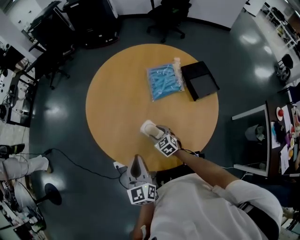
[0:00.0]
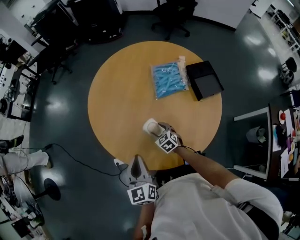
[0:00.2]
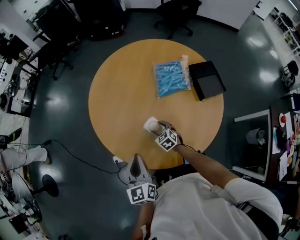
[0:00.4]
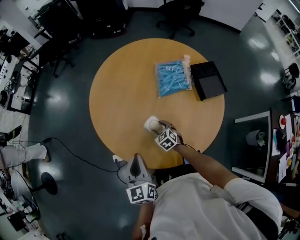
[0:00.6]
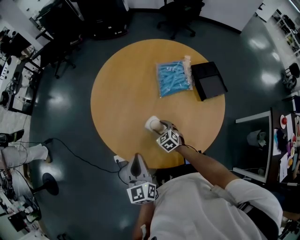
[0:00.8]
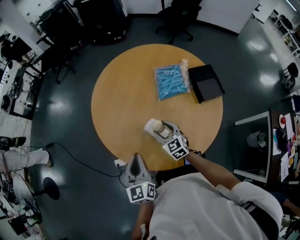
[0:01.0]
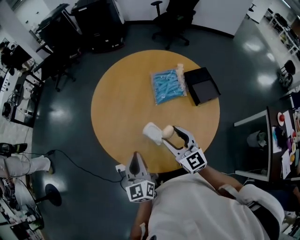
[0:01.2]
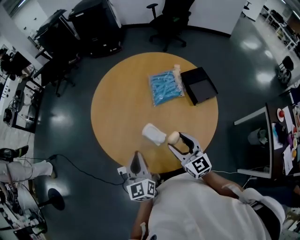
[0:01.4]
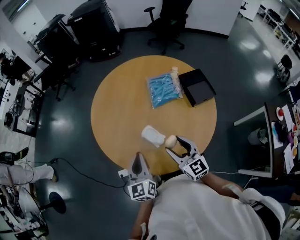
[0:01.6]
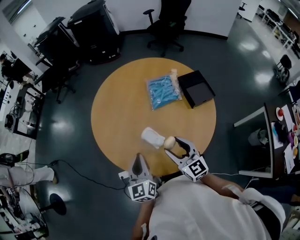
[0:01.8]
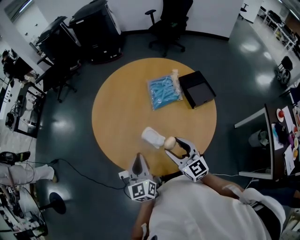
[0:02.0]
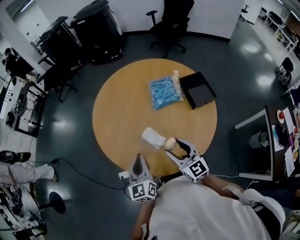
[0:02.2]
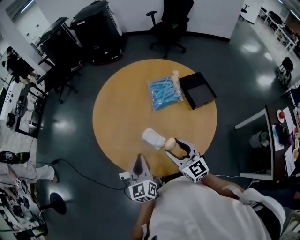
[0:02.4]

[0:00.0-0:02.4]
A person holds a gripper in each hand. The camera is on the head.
0:00.0 to 0:01.2: The right gripper heads upward, covering approximately 25 cm, and angles its fingers upward, by roughly 30 degrees.
0:01.2 to 0:02.4: The right gripper travels backward by about 5 cm.

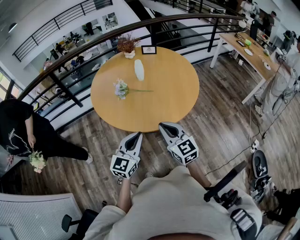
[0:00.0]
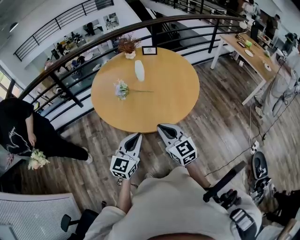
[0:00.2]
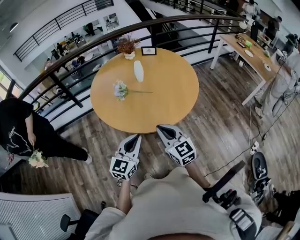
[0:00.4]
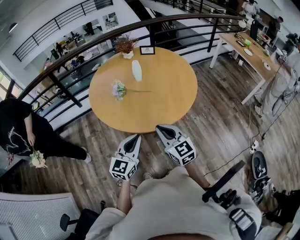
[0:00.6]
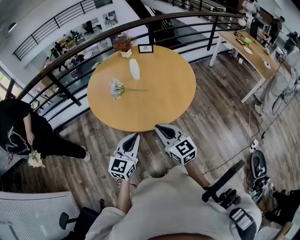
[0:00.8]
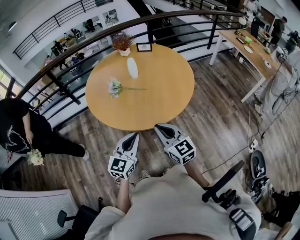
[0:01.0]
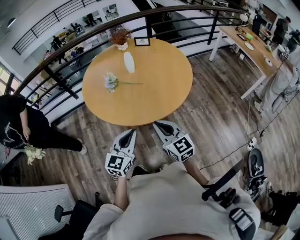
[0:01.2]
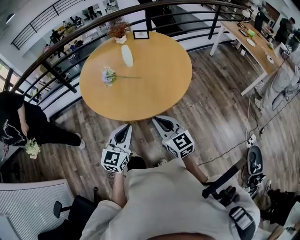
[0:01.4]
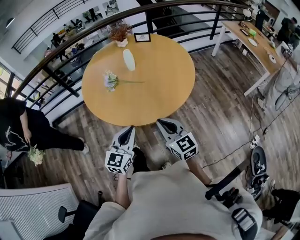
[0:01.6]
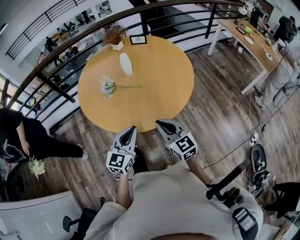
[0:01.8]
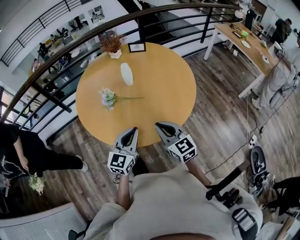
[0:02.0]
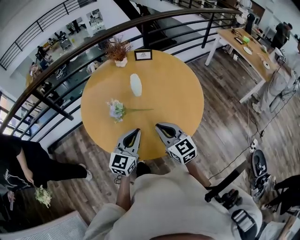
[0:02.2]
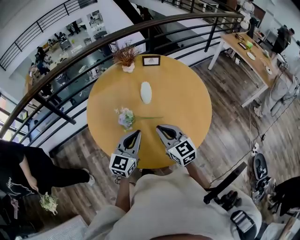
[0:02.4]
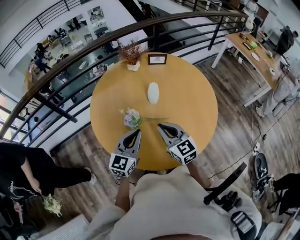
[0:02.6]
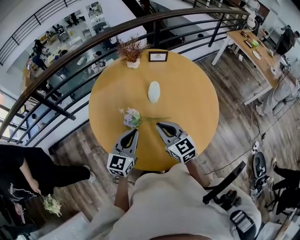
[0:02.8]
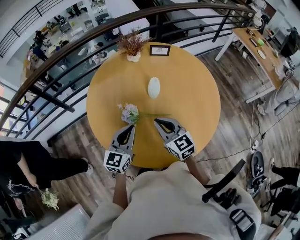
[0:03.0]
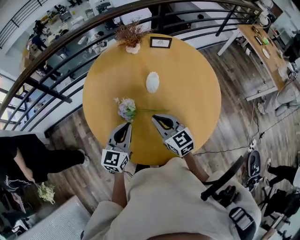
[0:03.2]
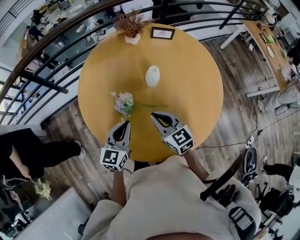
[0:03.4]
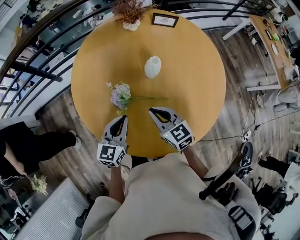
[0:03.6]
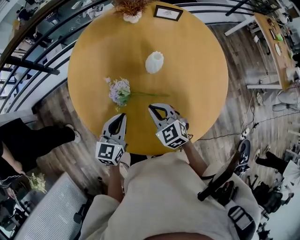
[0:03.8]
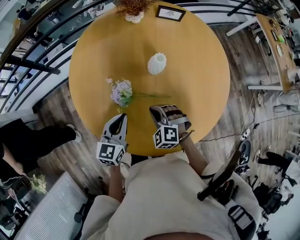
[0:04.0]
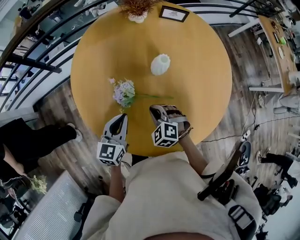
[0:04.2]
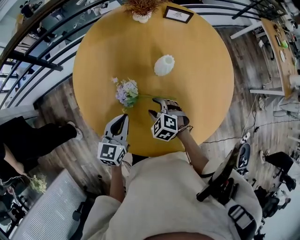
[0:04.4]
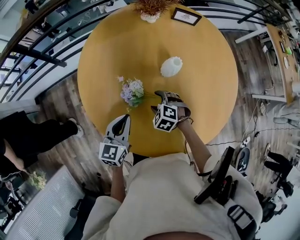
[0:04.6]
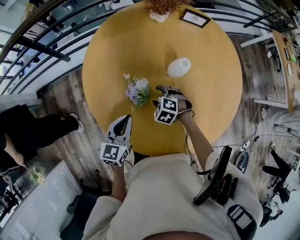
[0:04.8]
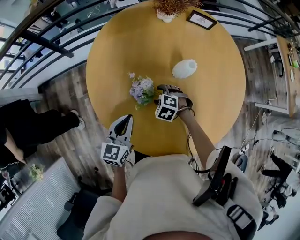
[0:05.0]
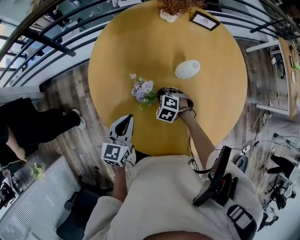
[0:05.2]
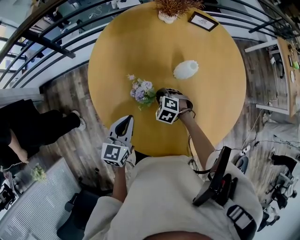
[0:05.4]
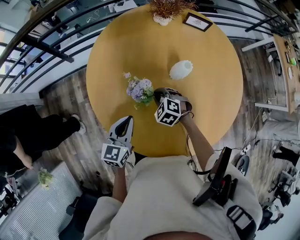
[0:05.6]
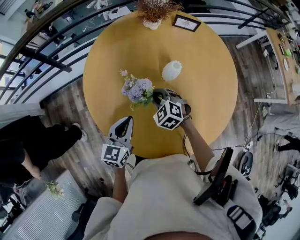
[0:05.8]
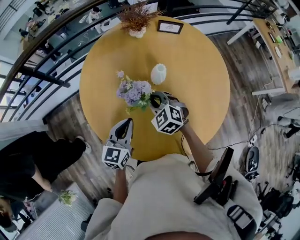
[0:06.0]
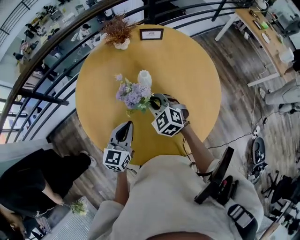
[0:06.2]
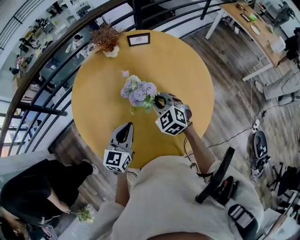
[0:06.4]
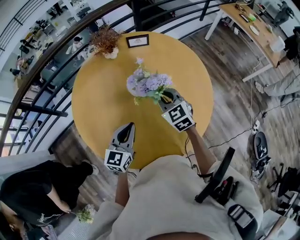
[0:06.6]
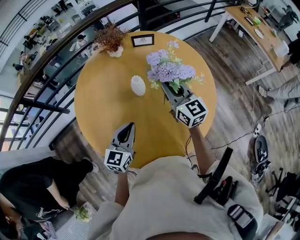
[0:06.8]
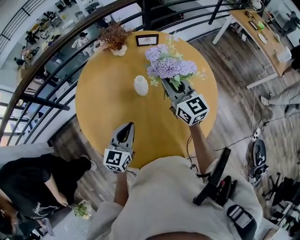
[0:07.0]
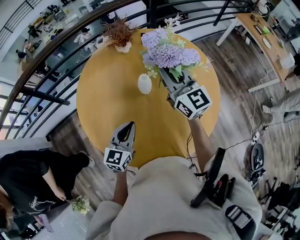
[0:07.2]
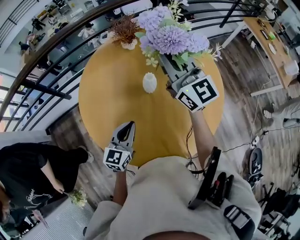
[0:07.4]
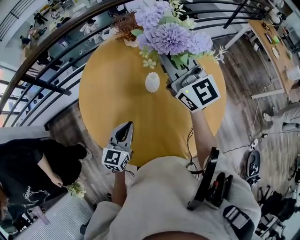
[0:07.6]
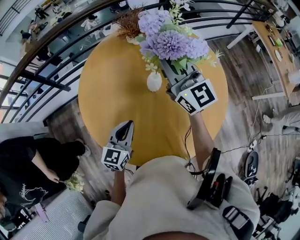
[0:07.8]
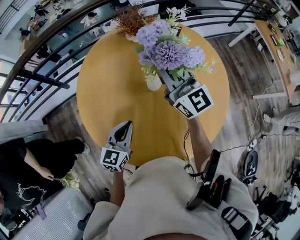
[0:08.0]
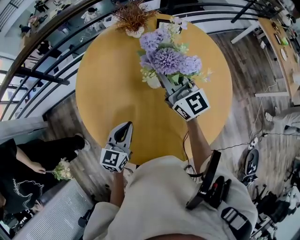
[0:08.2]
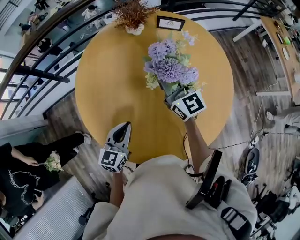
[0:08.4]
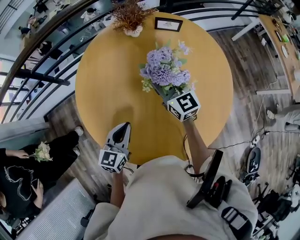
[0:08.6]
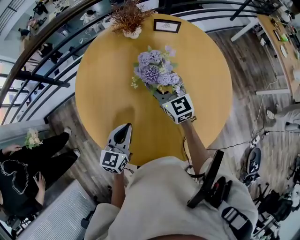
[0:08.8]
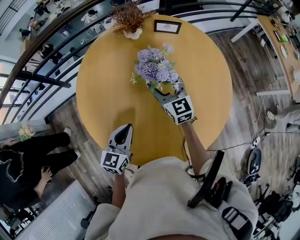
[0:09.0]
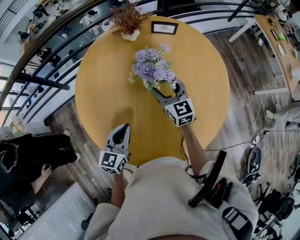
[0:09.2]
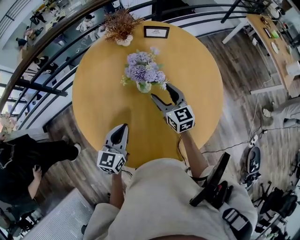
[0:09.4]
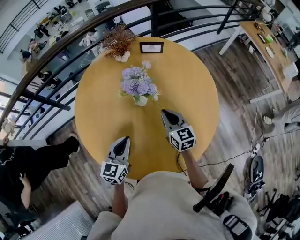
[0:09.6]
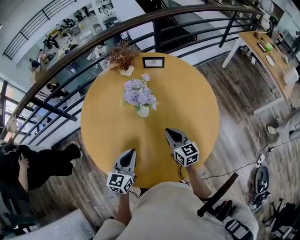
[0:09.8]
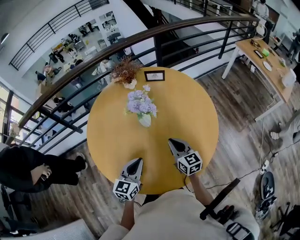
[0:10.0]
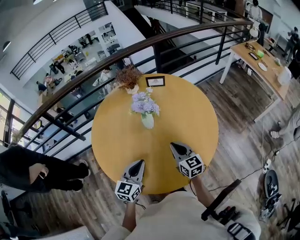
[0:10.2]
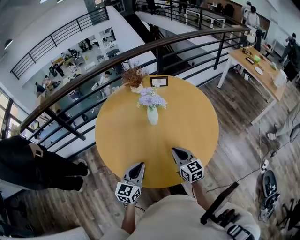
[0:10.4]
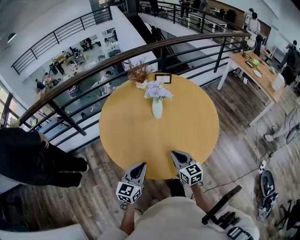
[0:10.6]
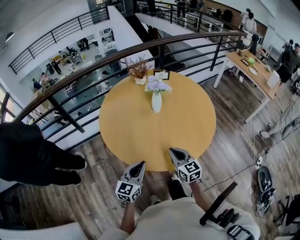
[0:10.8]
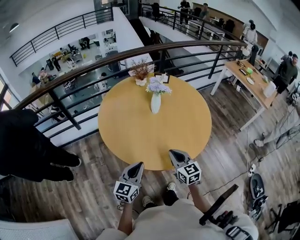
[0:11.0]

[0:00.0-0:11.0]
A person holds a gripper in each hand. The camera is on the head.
0:00.0 to 0:01.6: The right gripper moves to the right, some 5 cm.
0:01.6 to 0:03.2: Both grippers travel together forward and to the left, some 30 cm.
0:03.2 to 0:04.8: The right gripper shifts some 20 cm downward, tilts its fingers approximately 50 degrees downward, and opens; the left gripper heads downward and to the left, covering some 10 cm.
0:04.8 to 0:06.2: The right gripper shifts approximately 15 cm upward, tips its fingers upward by approximately 30 degrees, and closes its fingers. The left gripper heads to the right and upward, covering approximately 10 cm.
0:06.2 to 0:07.8: The right gripper heads upward and forward, covering about 25 cm, and tilts its fingers about 50 degrees upward.
0:07.8 to 0:09.4: The right gripper travels downward by about 25 cm, swivels some 30 degrees, and opens its fingers.
0:09.4 to 0:11.0: Both grippers move backward, some 20 cm. The right gripper closes up.

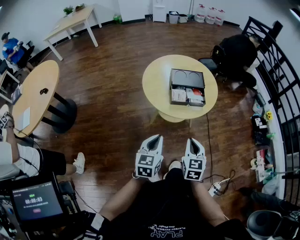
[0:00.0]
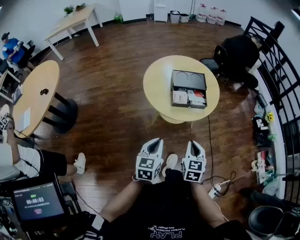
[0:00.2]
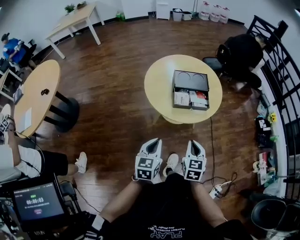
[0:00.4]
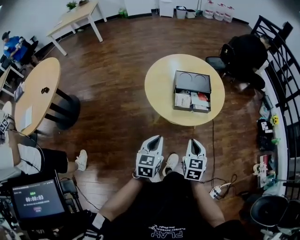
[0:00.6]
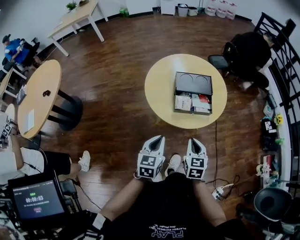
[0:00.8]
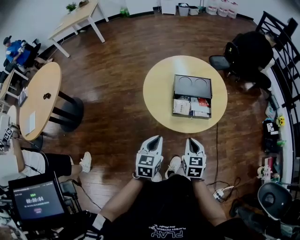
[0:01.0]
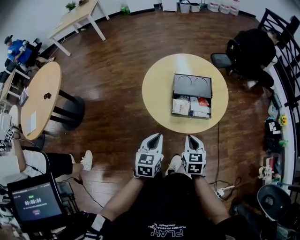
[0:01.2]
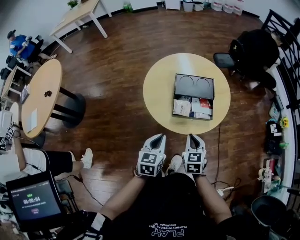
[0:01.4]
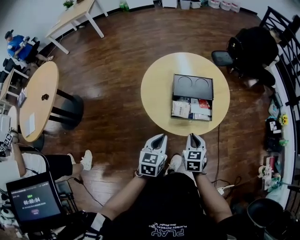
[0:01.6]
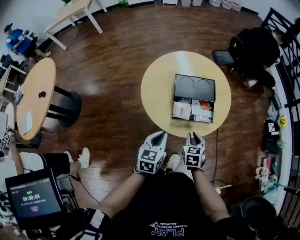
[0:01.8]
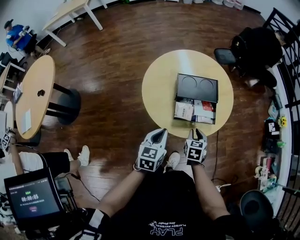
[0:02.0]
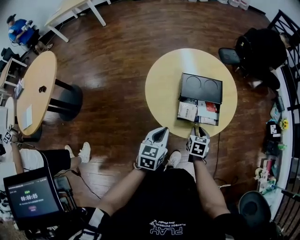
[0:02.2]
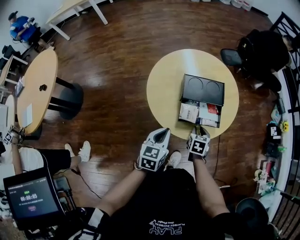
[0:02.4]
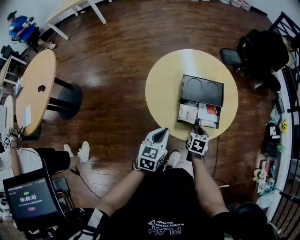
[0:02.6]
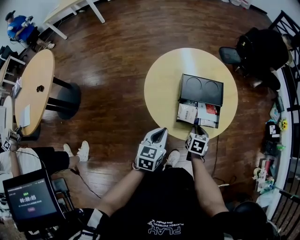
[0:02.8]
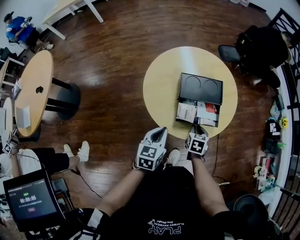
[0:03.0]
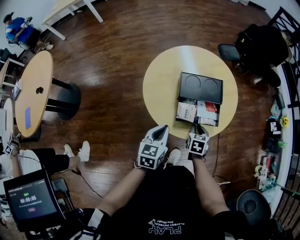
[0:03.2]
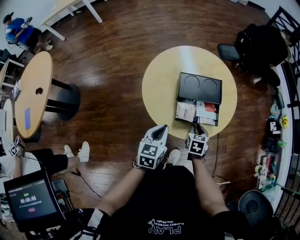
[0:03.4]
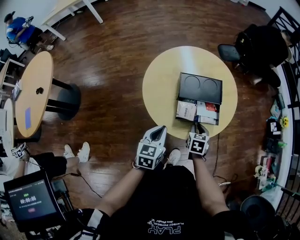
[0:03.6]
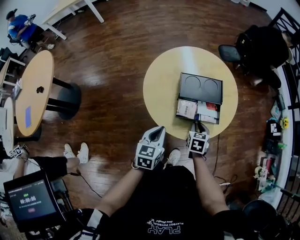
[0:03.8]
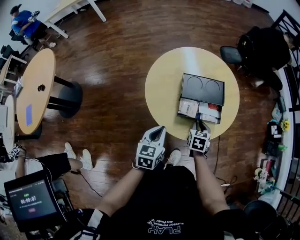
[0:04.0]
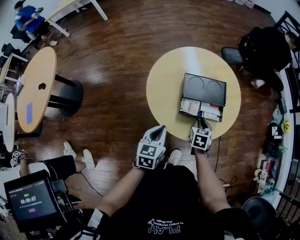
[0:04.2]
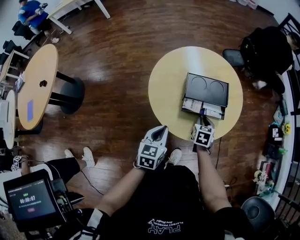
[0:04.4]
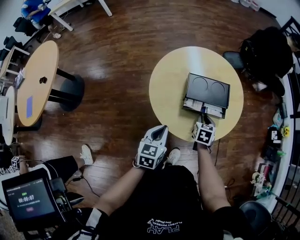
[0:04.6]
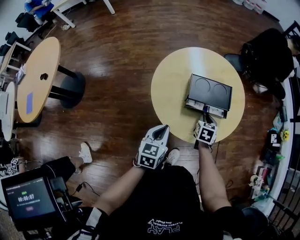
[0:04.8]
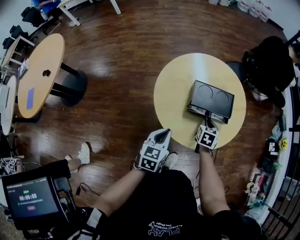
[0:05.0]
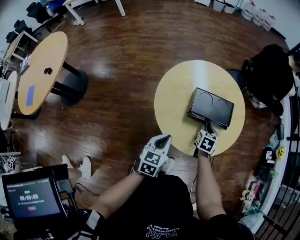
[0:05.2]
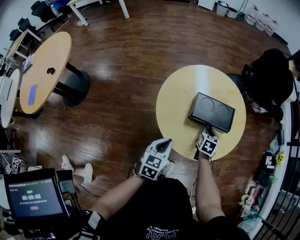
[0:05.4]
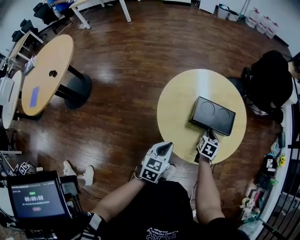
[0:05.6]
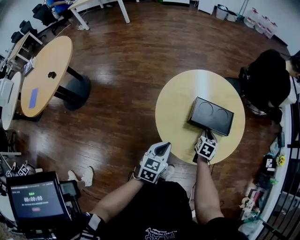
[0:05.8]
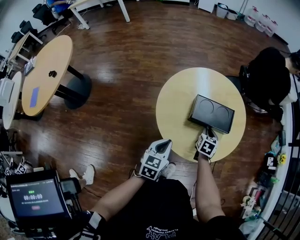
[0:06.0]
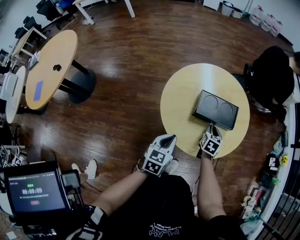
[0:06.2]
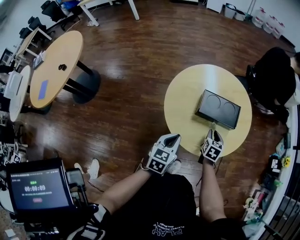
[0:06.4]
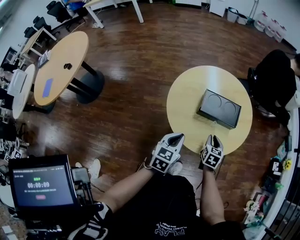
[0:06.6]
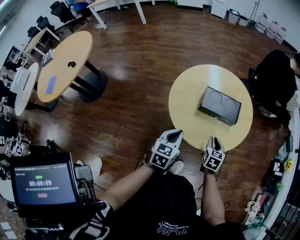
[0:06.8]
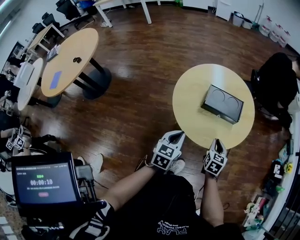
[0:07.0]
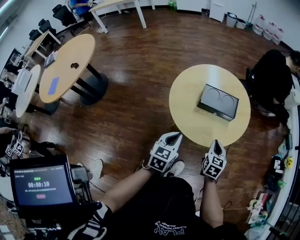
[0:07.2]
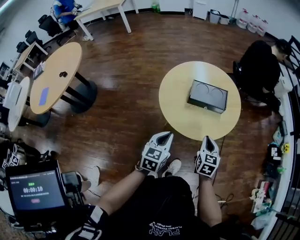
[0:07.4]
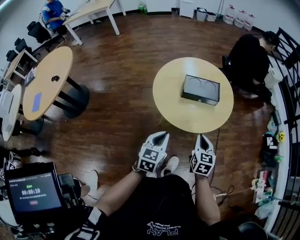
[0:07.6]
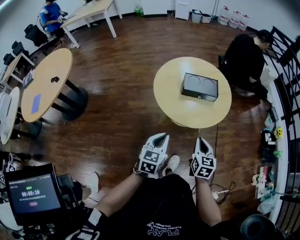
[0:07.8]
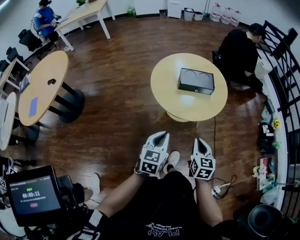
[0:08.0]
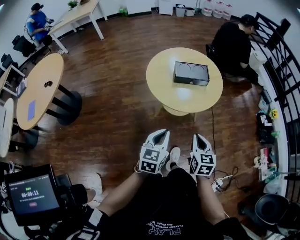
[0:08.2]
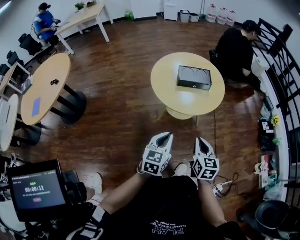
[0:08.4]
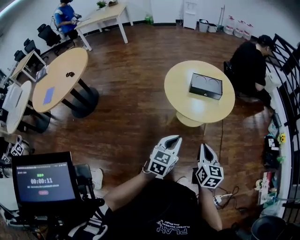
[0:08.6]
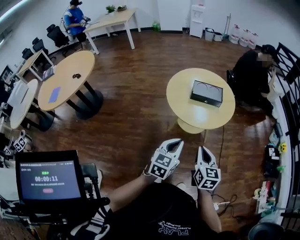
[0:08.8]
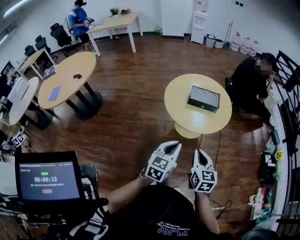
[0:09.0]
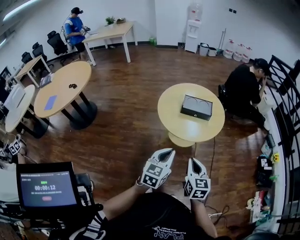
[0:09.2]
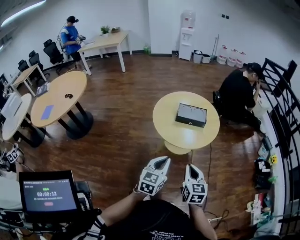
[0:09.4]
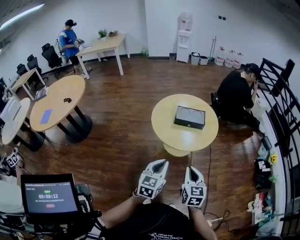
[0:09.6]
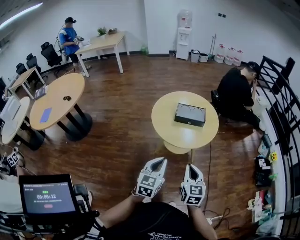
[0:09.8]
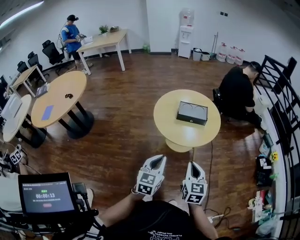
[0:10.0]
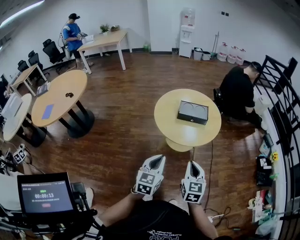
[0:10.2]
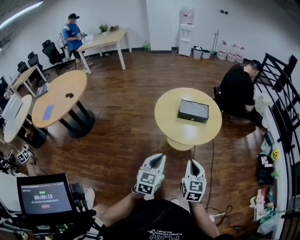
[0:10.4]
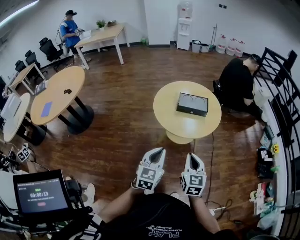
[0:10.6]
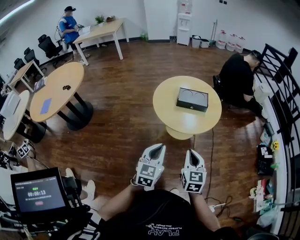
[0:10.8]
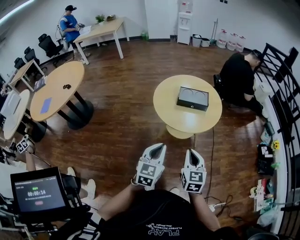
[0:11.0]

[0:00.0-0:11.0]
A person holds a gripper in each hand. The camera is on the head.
0:00.0 to 0:01.6: The left gripper heads forward, covering about 15 cm. Meanwhile the right gripper goes roughly 20 cm forward and downward.
0:01.6 to 0:03.2: The right gripper shifts roughly 10 cm downward and forward. The left gripper goes about 5 cm forward.
0:03.2 to 0:04.8: The right gripper goes about 10 cm forward.
0:04.8 to 0:06.2: The grippers make only small movements.
0:06.2 to 0:07.8: The right gripper goes some 35 cm backward and upward; the left gripper heads backward, covering roughly 20 cm.
0:07.8 to 0:09.4: The right gripper heads backward and upward, covering about 15 cm; the left gripper goes about 15 cm upward, backward and to the right.
0:09.4 to 0:11.0: The grippers stay close to where they were, moving slightly.
